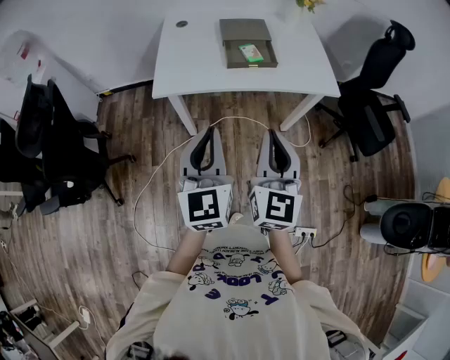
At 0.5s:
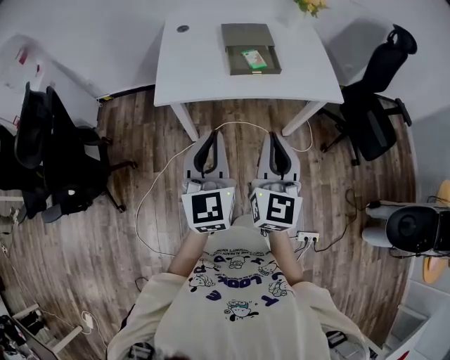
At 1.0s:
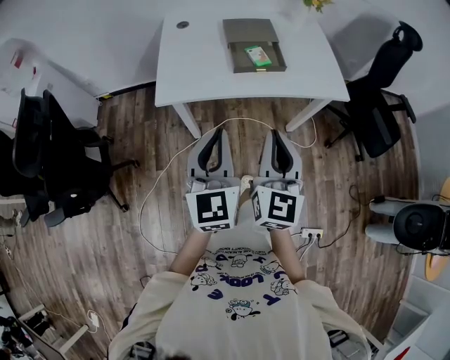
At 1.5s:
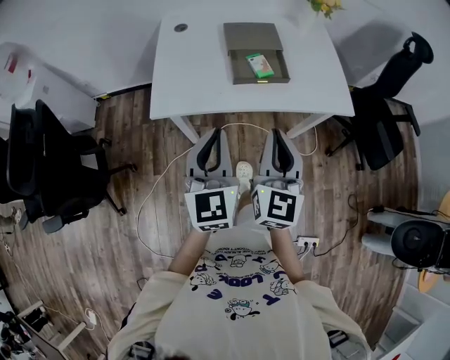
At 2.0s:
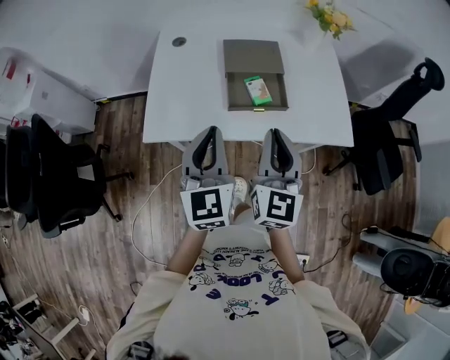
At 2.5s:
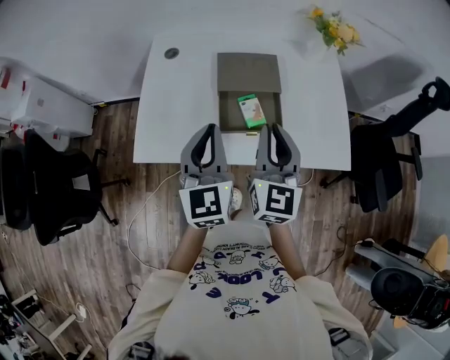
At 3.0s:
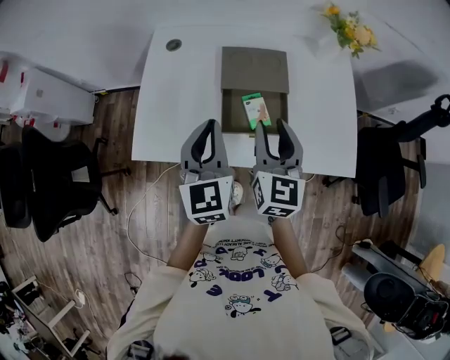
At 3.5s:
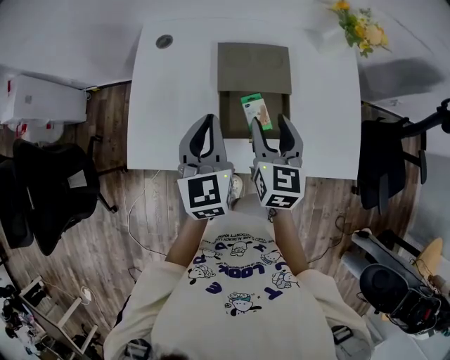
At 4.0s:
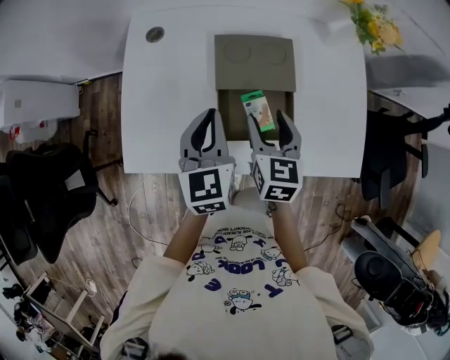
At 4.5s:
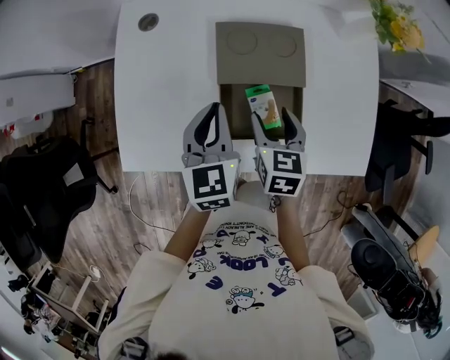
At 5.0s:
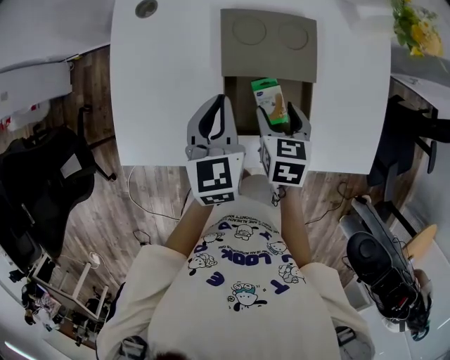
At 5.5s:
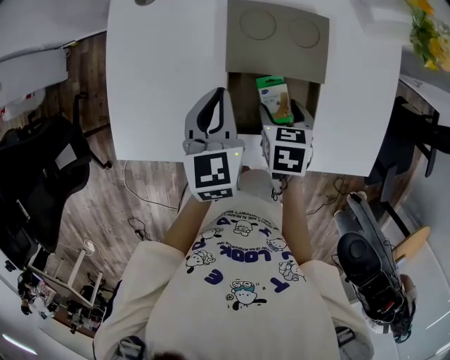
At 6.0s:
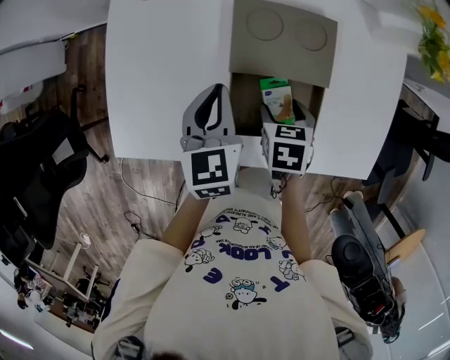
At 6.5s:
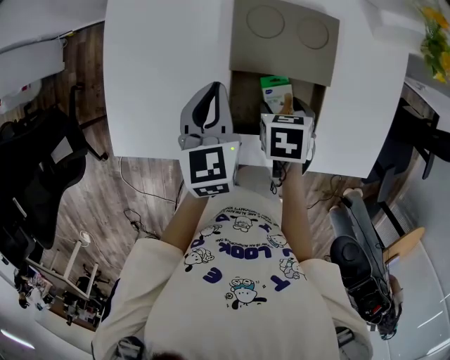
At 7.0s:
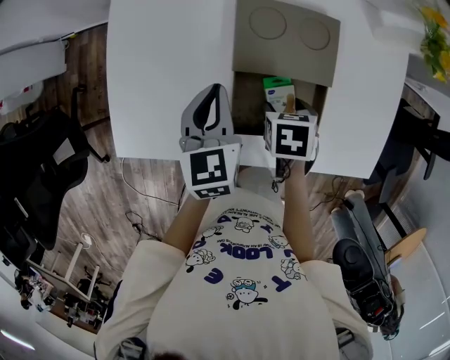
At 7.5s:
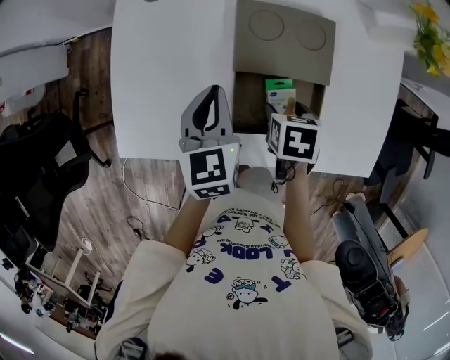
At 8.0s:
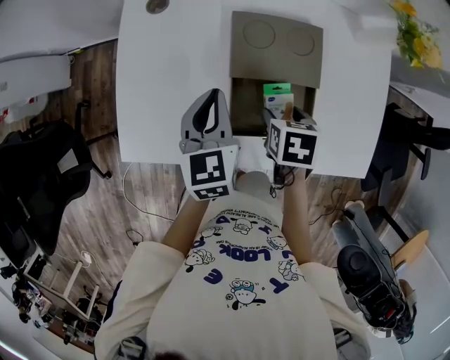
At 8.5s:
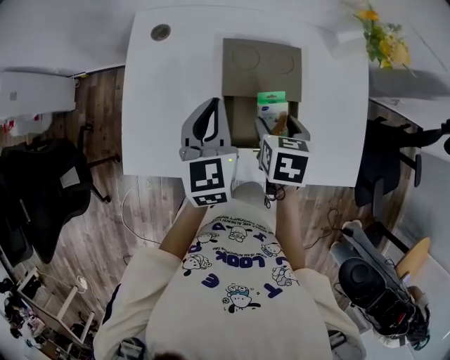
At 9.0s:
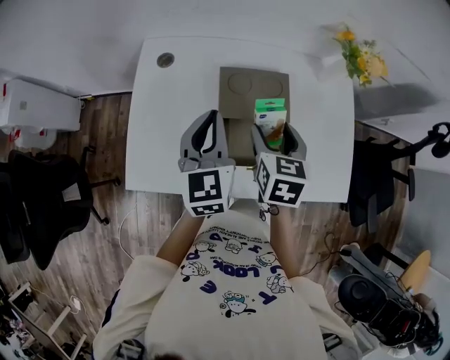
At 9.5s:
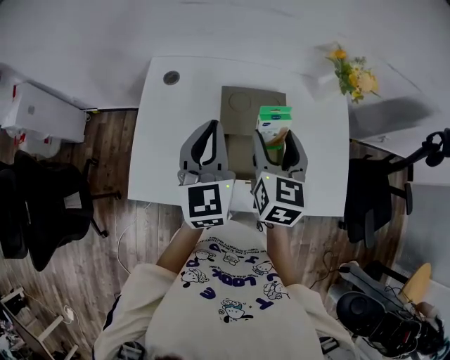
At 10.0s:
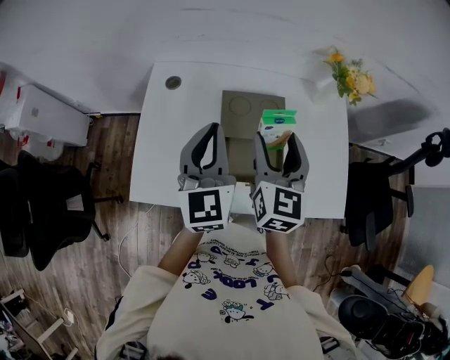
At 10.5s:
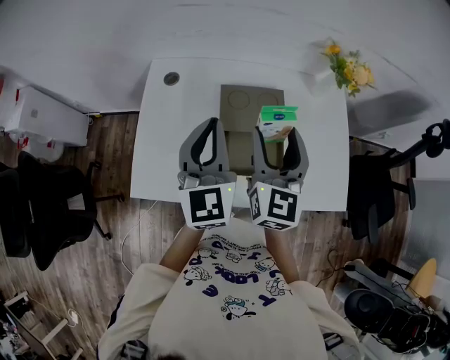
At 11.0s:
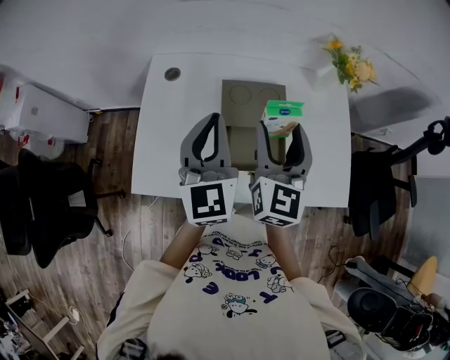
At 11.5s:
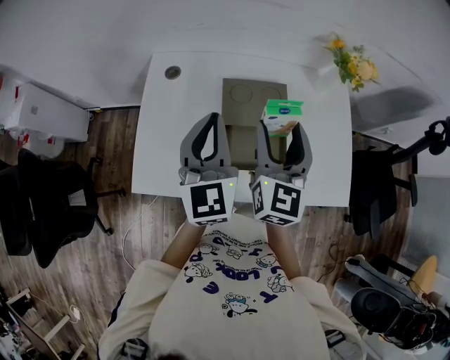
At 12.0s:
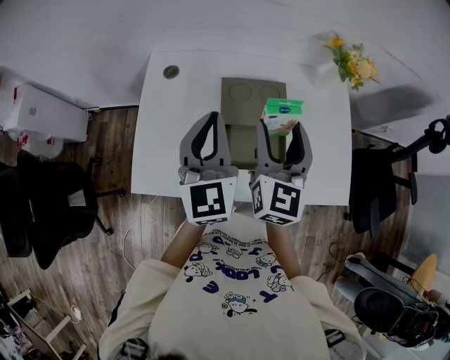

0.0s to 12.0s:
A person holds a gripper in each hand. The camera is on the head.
0.0s to 2.0s: Both grippers move forward, about 25 cm.
2.0s to 4.0s: The two grippers go roughly 25 cm forward and downward. The right gripper swivels about 30 degrees, and opens.
4.0s to 6.0s: The right gripper is displaced downward by about 15 cm, and points its fingers approximately 40 degrees further downward. Meanwhile the left gripper moves downward and forward, roughly 10 cm.
6.0s to 8.0s: There are only small adjustments of the grippers.
8.0s to 10.0s: Both grippers travel together upward, about 20 cm. The right gripper points its fingers about 60 degrees further upward. The left gripper turns by roughly 30 degrees.
10.0s to 12.0s: The grippers make only small movements.

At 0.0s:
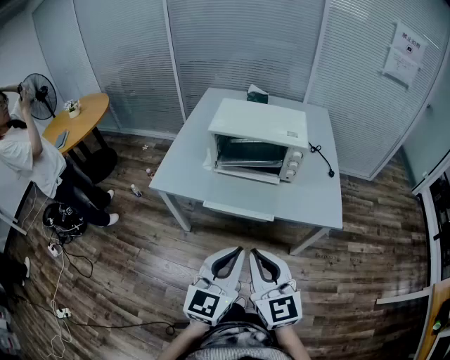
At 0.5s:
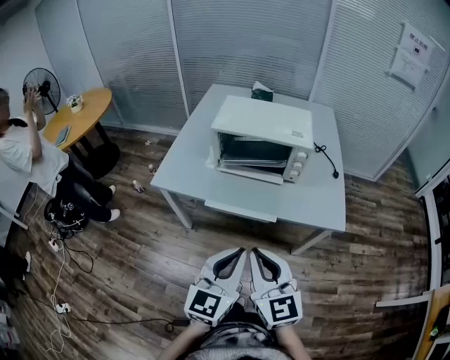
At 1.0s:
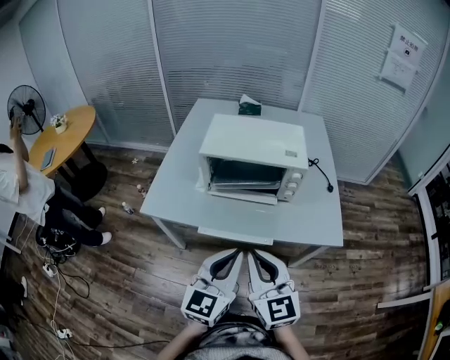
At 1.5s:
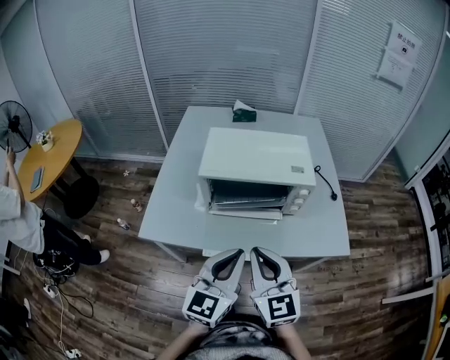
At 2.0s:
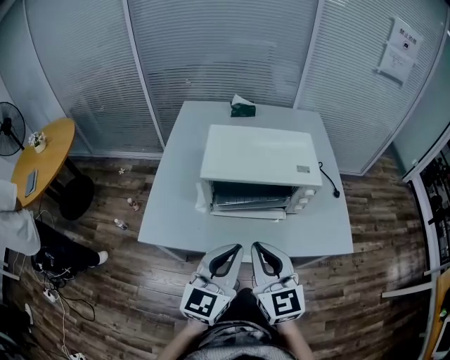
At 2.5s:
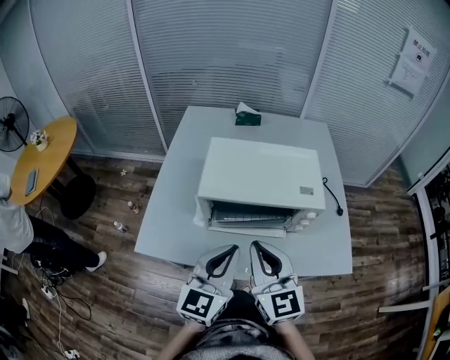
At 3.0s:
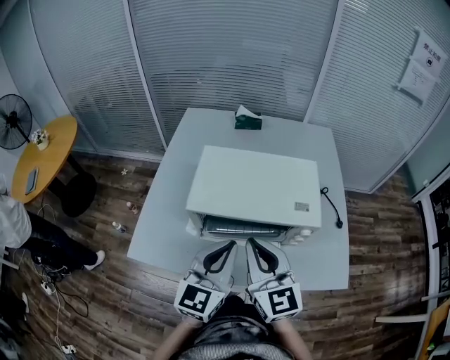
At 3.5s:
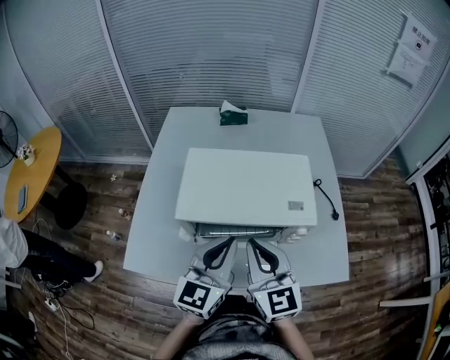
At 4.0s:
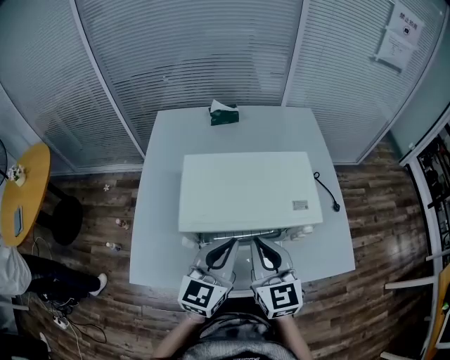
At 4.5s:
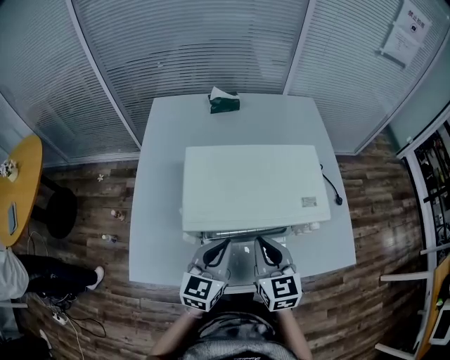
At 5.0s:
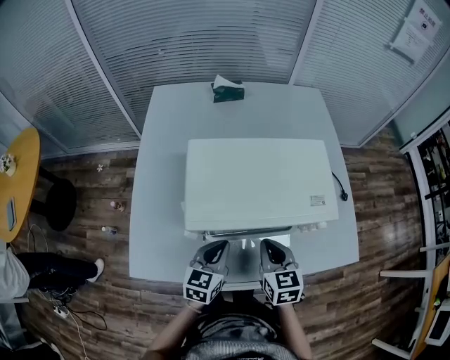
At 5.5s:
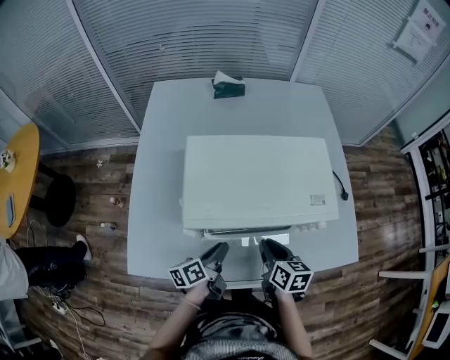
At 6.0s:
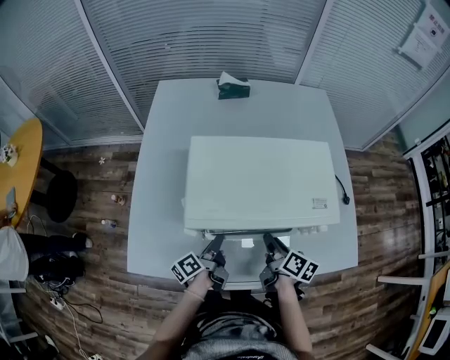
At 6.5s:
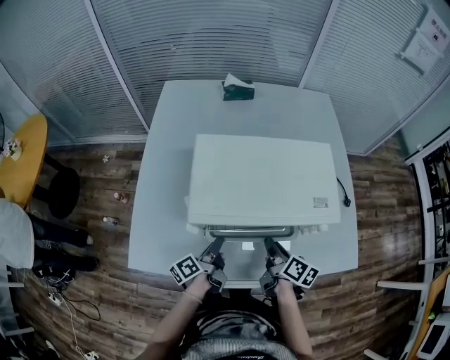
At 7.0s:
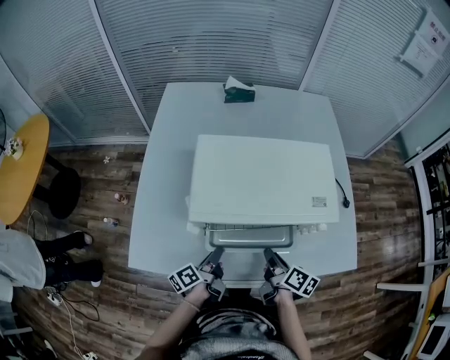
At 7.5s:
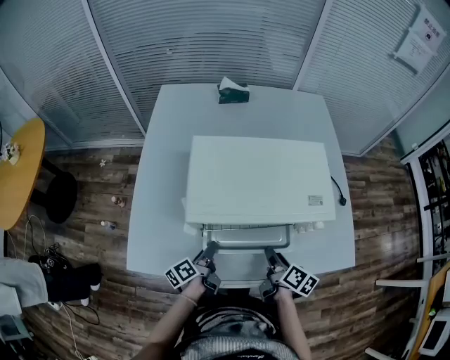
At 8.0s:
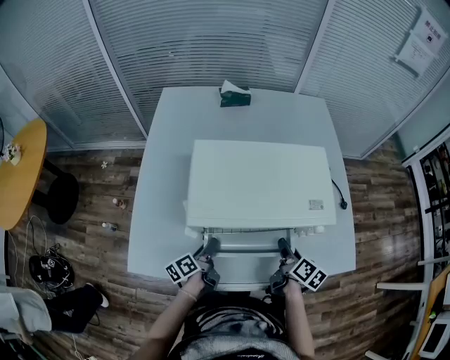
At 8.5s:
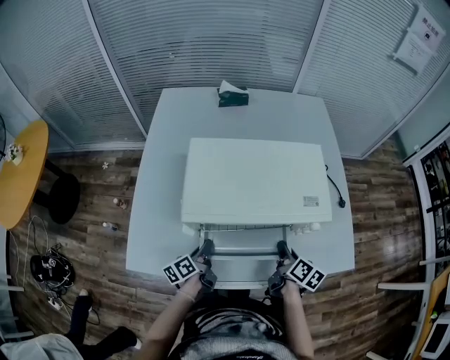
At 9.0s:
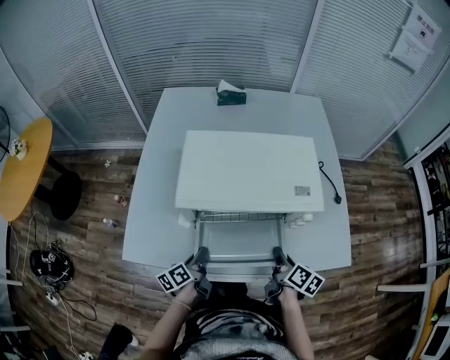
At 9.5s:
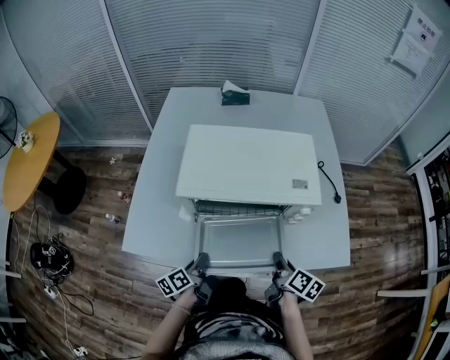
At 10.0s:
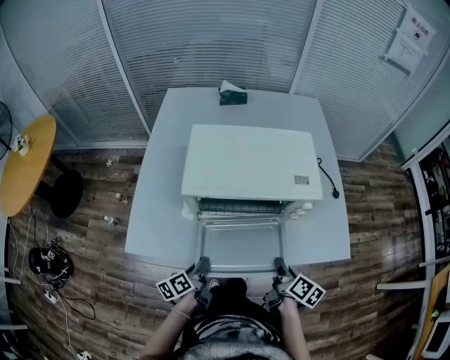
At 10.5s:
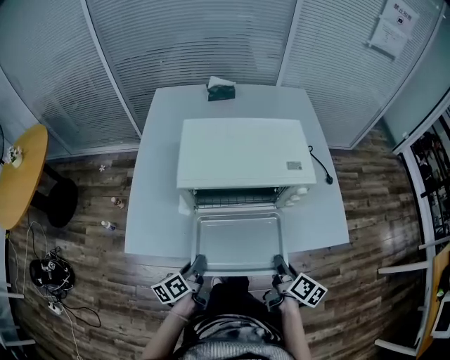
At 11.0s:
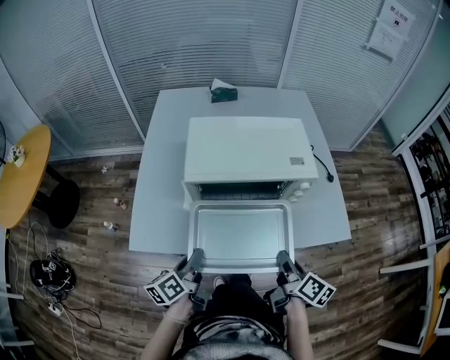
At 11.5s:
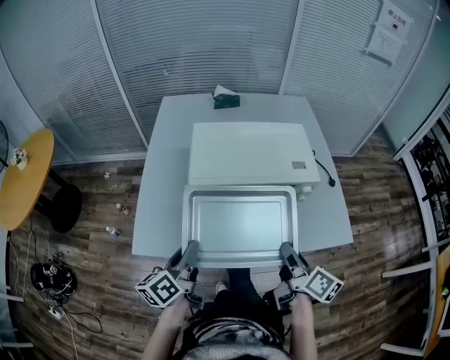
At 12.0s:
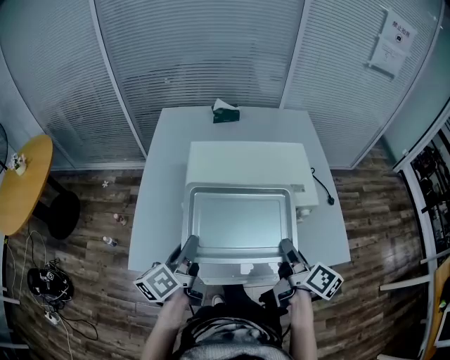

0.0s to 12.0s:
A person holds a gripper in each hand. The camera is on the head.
0.0s to 2.0s: Both grippers move forward, about 25 cm.
2.0s to 4.0s: Both grippers travel together forward, approximately 20 cm.
4.0s to 6.0s: Both grippers travel together downward, some 25 cm. The left gripper rotates around the line of its fingers by roughly 80 degrees, counterclockwise from behind; the right gripper twists roughly 60 degrees clockwise, seen from behind.
6.0s to 8.0s: The right gripper is displaced to the right by some 5 cm.
8.0s to 10.0s: The grippers both shift backward by approximately 15 cm. The left gripper closes up.
10.0s to 12.0s: The left gripper travels upward by some 20 cm, and turns by approximately 20 degrees, while the right gripper shifts some 15 cm upward and forward.

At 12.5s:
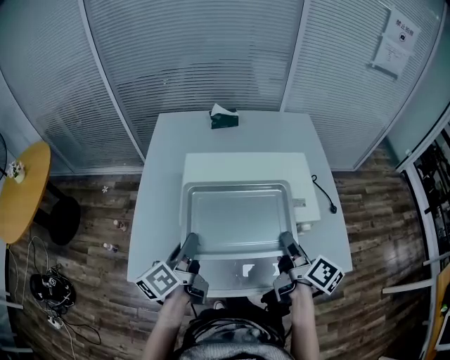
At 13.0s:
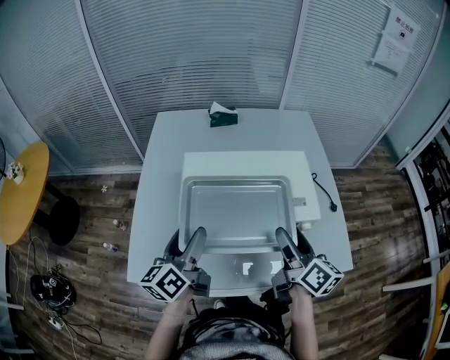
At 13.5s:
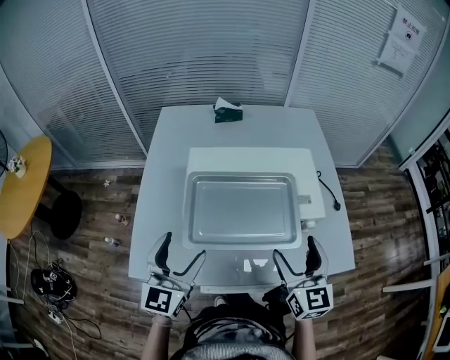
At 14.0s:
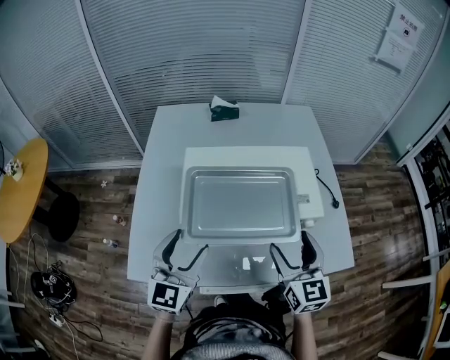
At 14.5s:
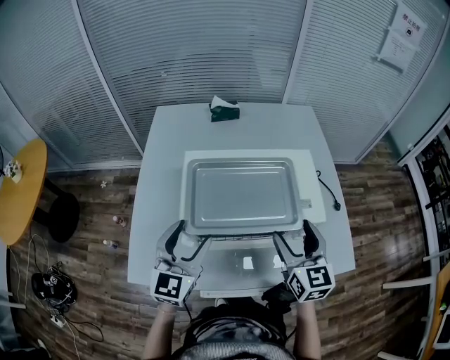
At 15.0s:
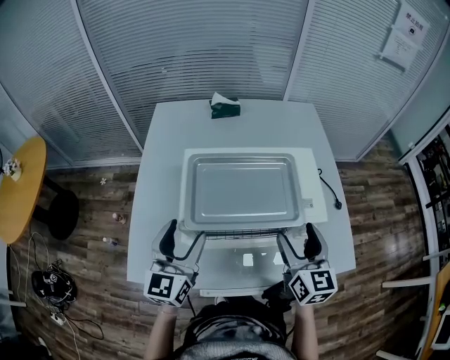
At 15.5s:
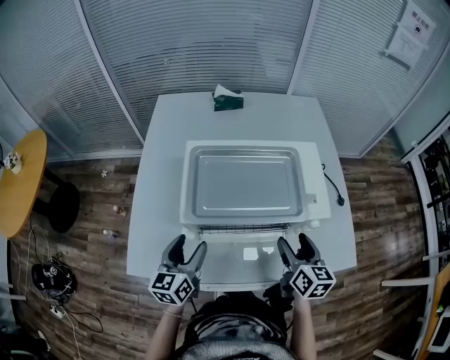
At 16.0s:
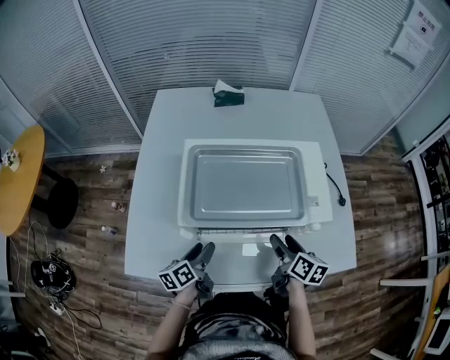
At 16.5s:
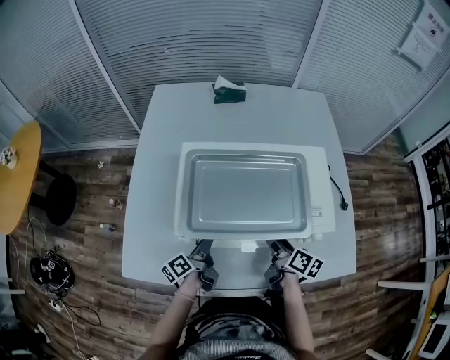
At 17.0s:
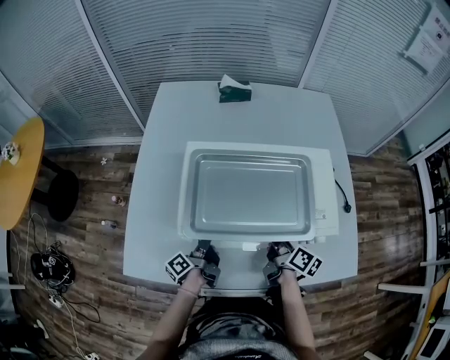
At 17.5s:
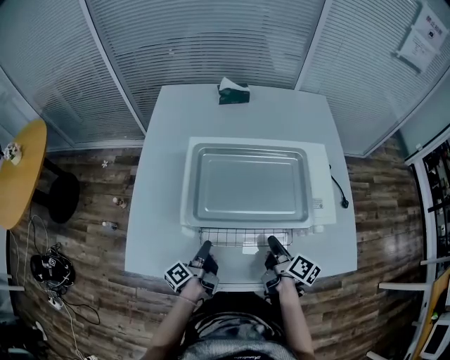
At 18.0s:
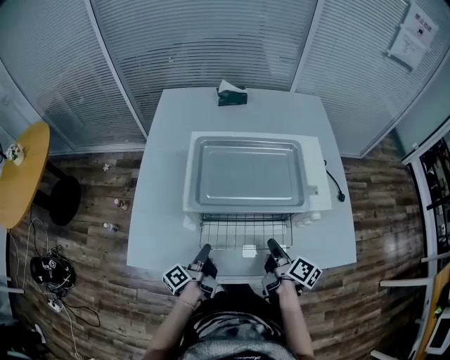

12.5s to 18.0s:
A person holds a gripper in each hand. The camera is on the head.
12.5s to 14.5s: The left gripper twists about 60 degrees clockwise, seen from behind, and opens up, while the right gripper rolls counterclockwise, seen from behind, by approximately 60 degrees, and opens up.
14.5s to 16.0s: Both grippers move downward, some 20 cm. The left gripper rotates around the line of its fingers by approximately 60 degrees, counterclockwise from behind; the right gripper rotates around the line of its fingers by about 40 degrees, clockwise from behind.
16.0s to 18.0s: The right gripper moves about 5 cm, changes its angle by about 20 degrees, and closes up, while the left gripper changes its angle by roughly 30 degrees, and closes.
